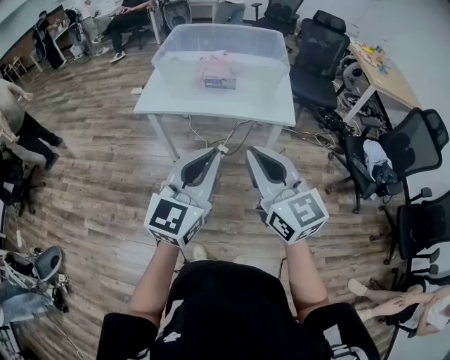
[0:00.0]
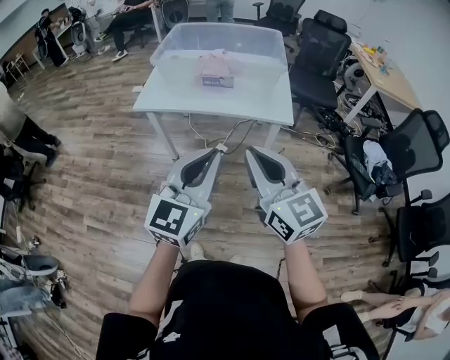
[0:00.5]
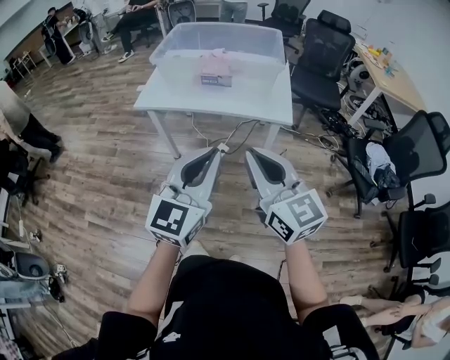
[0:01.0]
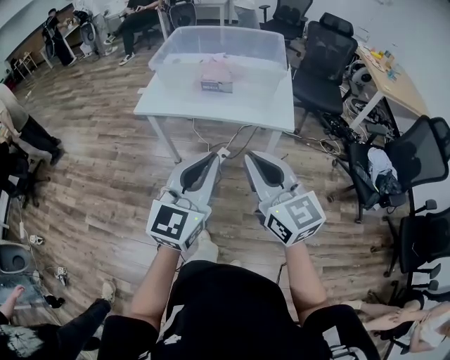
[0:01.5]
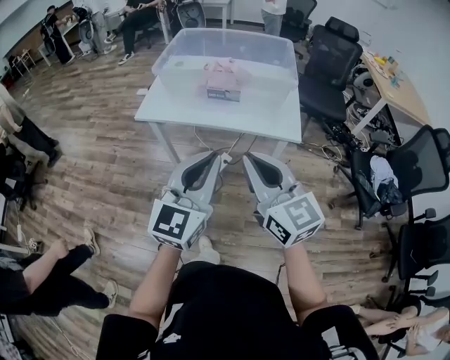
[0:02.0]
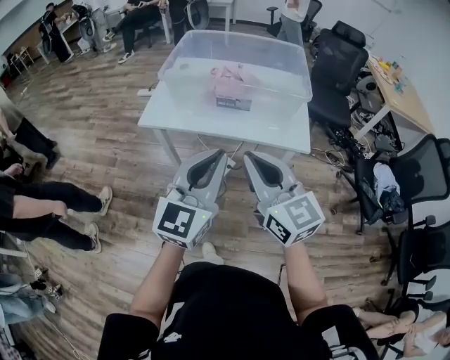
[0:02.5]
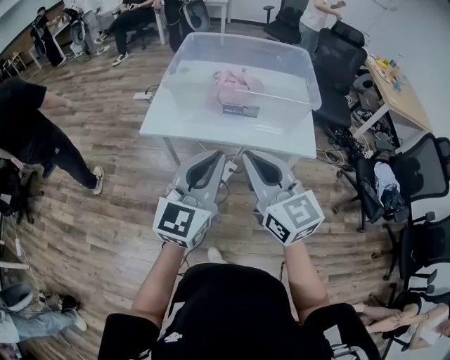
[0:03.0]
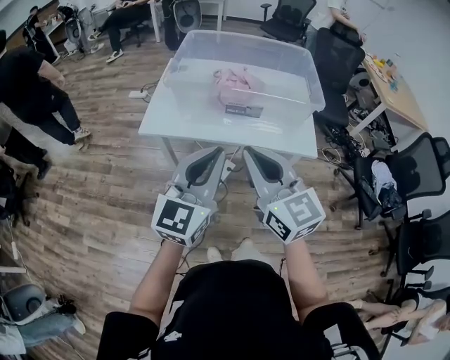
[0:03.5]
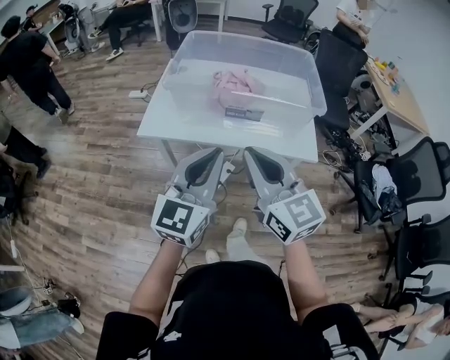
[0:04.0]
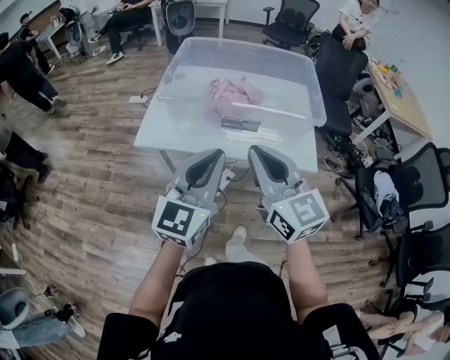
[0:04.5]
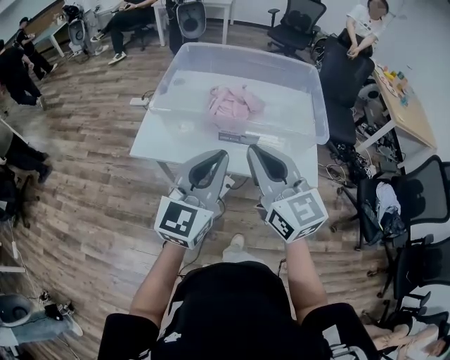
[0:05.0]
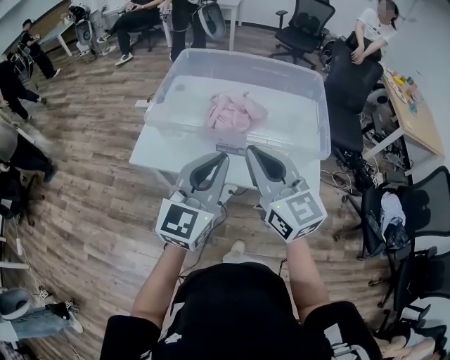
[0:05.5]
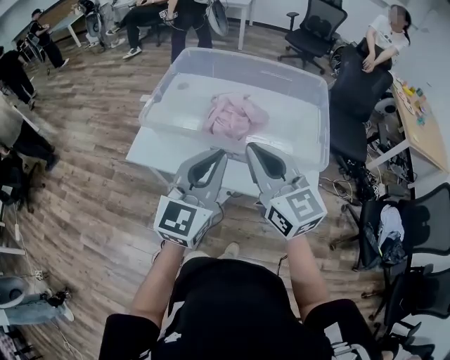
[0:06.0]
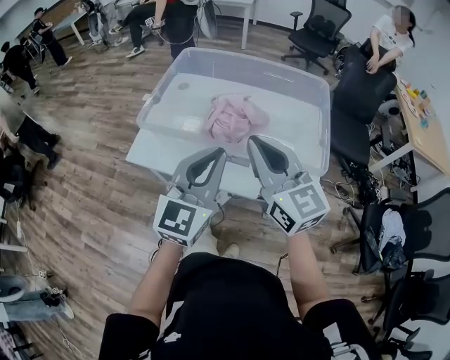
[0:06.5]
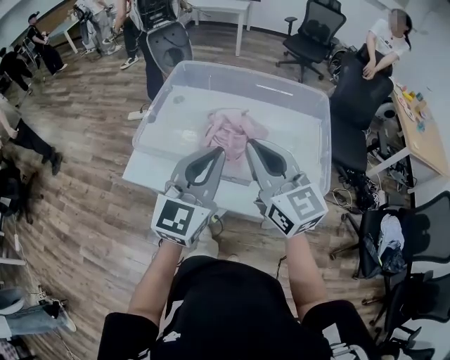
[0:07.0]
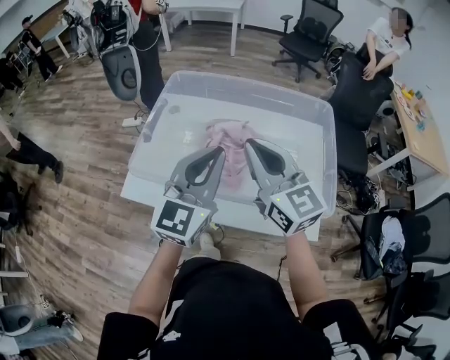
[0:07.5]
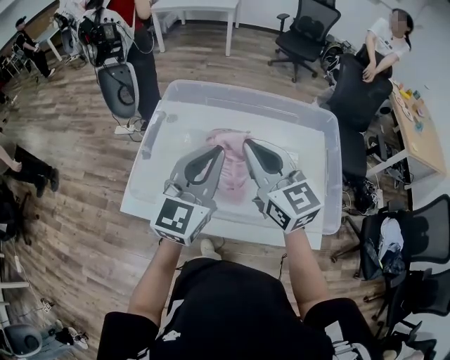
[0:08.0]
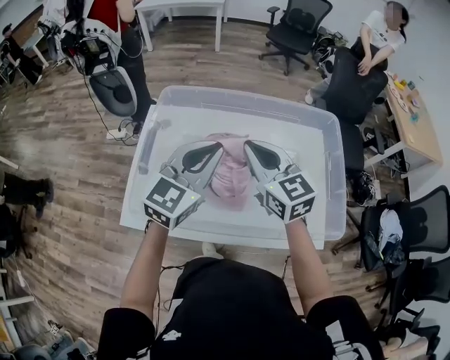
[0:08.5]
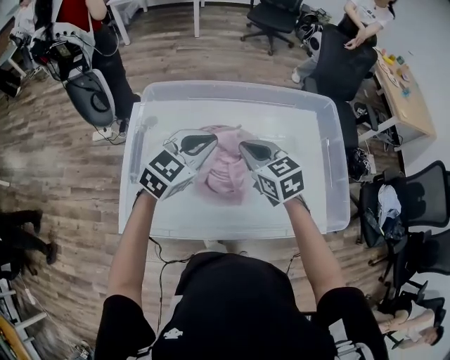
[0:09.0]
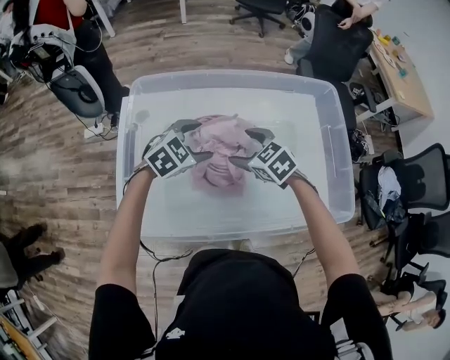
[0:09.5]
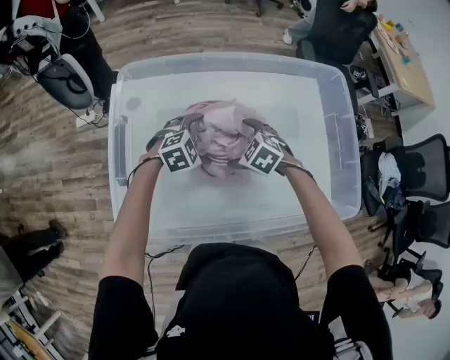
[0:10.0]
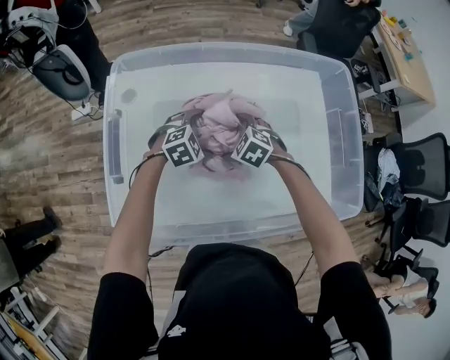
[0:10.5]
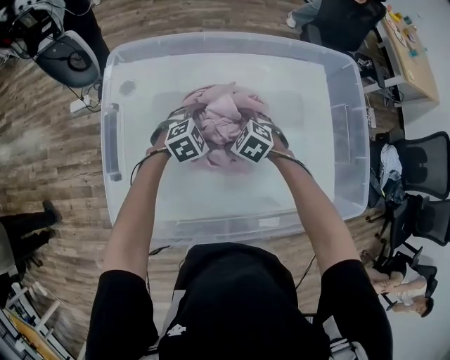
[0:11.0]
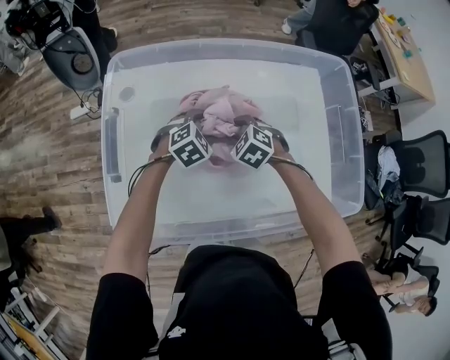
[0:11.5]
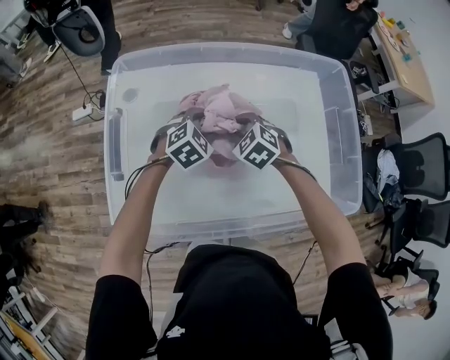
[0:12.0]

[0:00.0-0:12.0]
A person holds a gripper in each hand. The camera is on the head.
0:00.0 to 0:02.0: The grippers both shift forward by some 10 cm.
0:02.0 to 0:04.0: The grippers both shift forward and to the left by roughly 20 cm.
0:04.0 to 0:06.0: Both grippers move forward and to the right, roughly 20 cm.
0:06.0 to 0:08.0: Both grippers move forward, approximately 20 cm.
0:08.0 to 0:10.0: Both grippers travel together downward, some 35 cm. The left gripper points its fingers about 60 degrees further downward, and opens up. Meanwhile the right gripper angles its fingers downward, by some 60 degrees, and opens.
0:10.0 to 0:12.0: The right gripper closes; the left gripper closes its fingers.

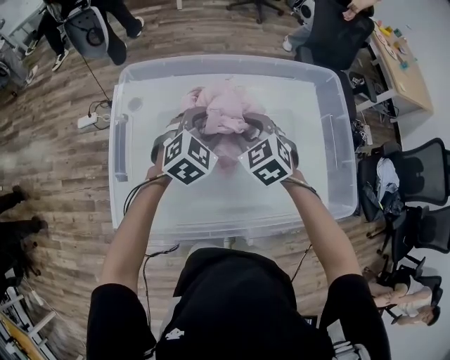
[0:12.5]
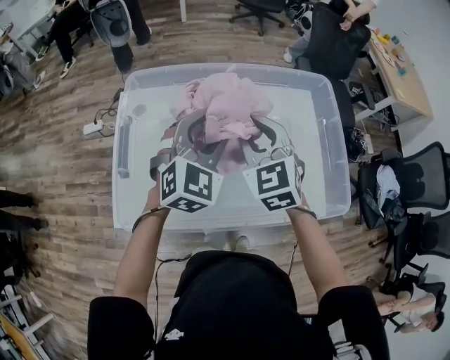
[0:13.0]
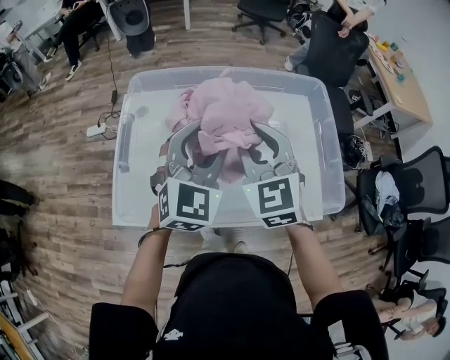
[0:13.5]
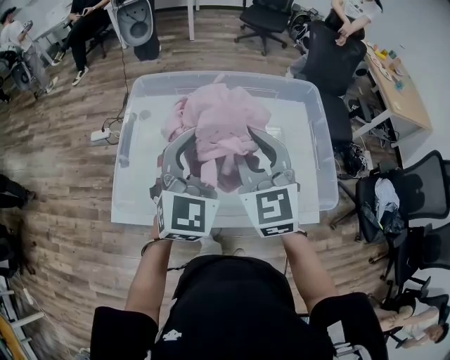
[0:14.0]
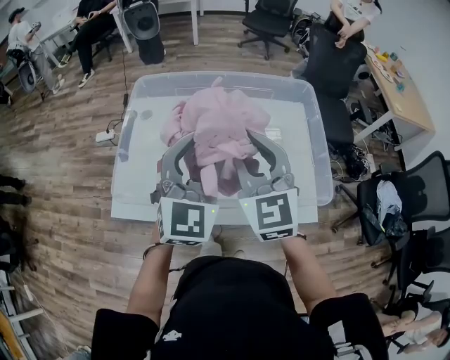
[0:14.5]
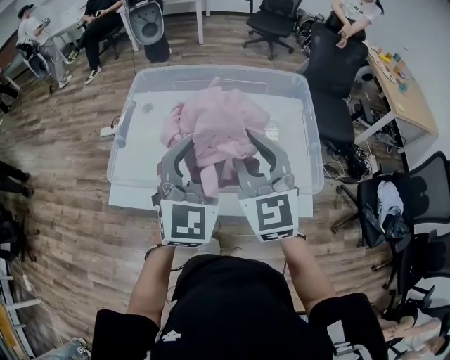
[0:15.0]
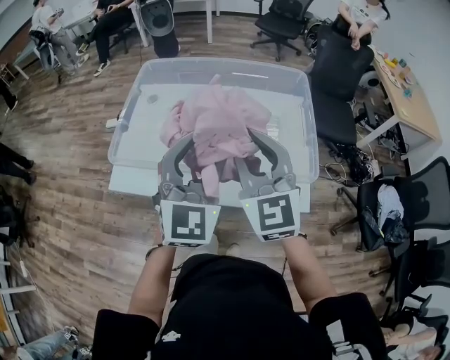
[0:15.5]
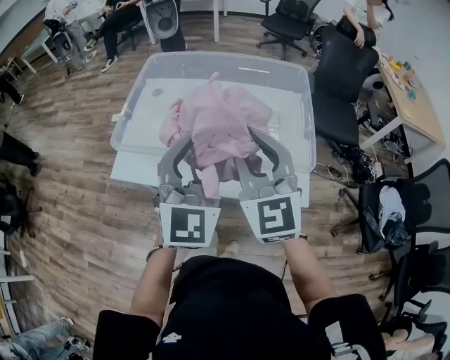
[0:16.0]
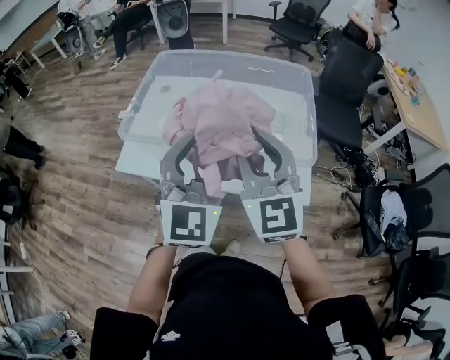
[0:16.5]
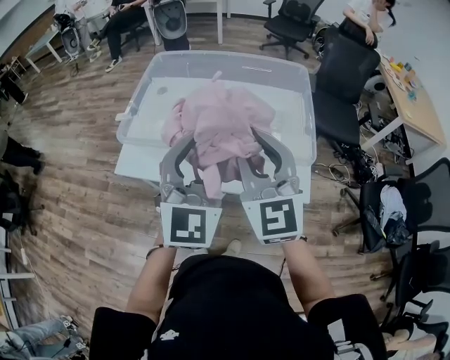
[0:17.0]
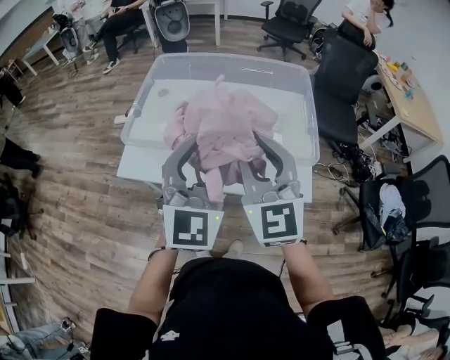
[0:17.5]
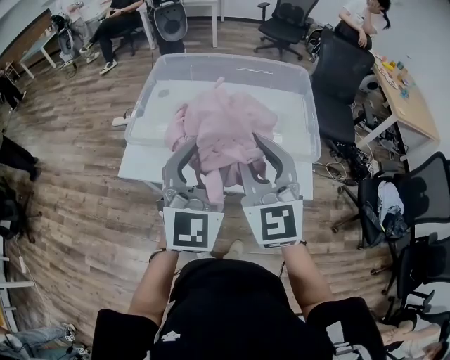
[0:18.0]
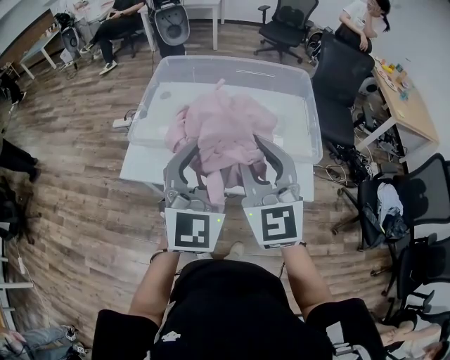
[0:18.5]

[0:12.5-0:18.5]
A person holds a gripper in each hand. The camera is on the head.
0:12.5 to 0:14.5: Both grippers move upward and backward, some 25 cm. The left gripper points its fingers about 30 degrees further upward, while the right gripper tilts its fingers about 30 degrees upward.
0:14.5 to 0:16.5: The grippers both shift backward by some 15 cm.
0:16.5 to 0:18.5: The left gripper ends up about 5 cm from where it was. Meanwhile the right gripper ends up approximately 5 cm from where it was.

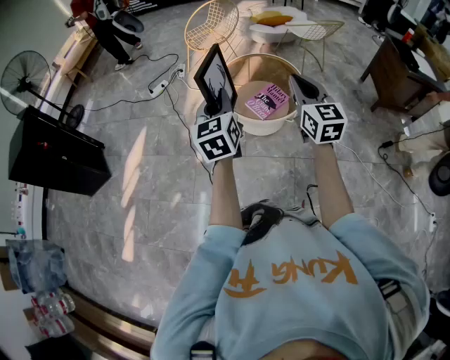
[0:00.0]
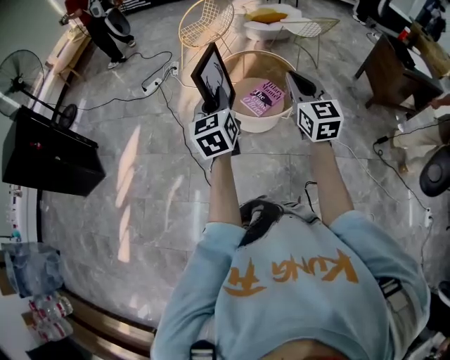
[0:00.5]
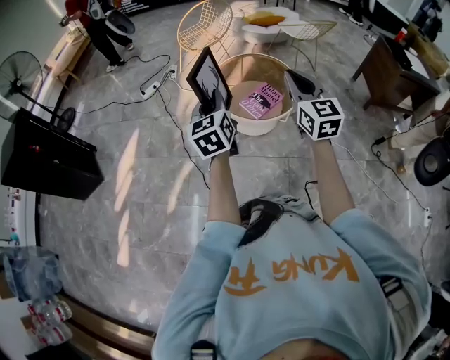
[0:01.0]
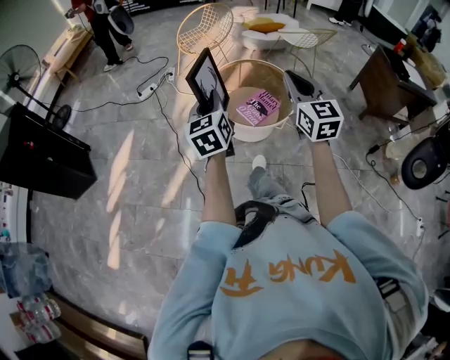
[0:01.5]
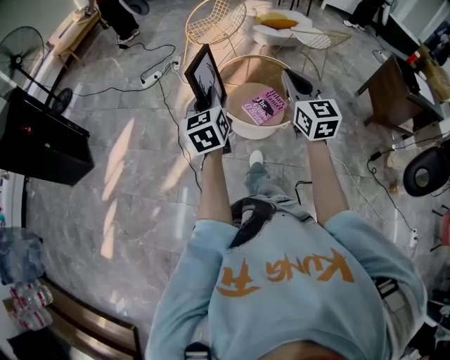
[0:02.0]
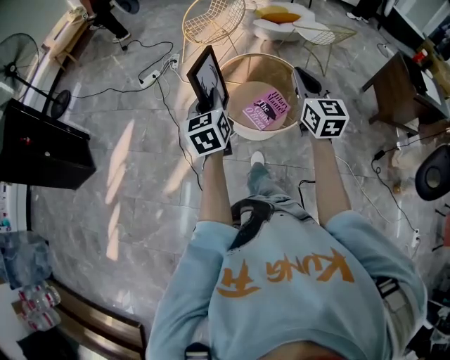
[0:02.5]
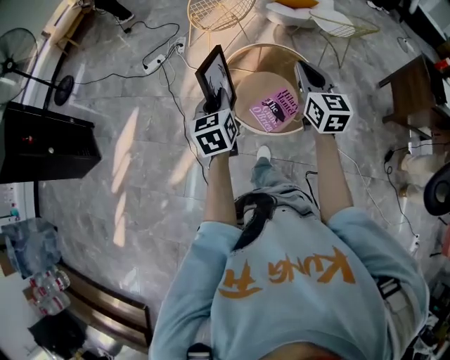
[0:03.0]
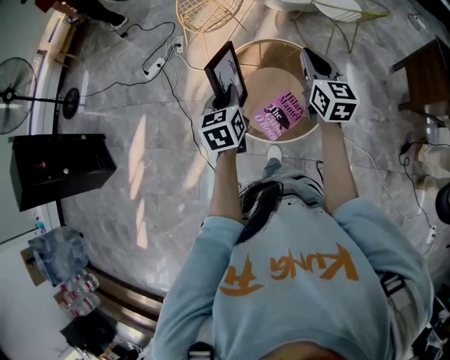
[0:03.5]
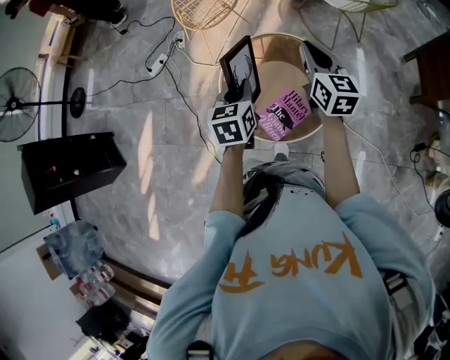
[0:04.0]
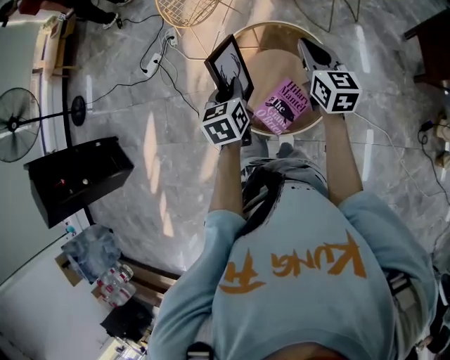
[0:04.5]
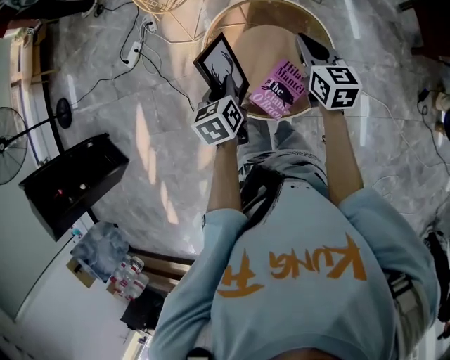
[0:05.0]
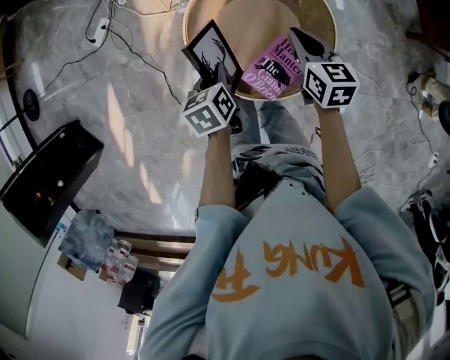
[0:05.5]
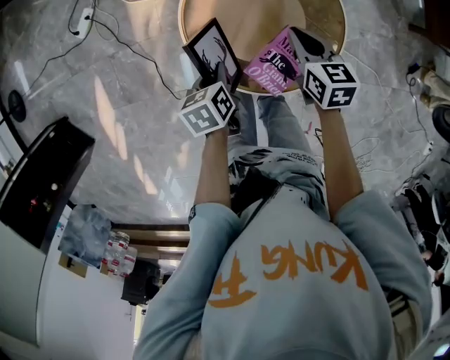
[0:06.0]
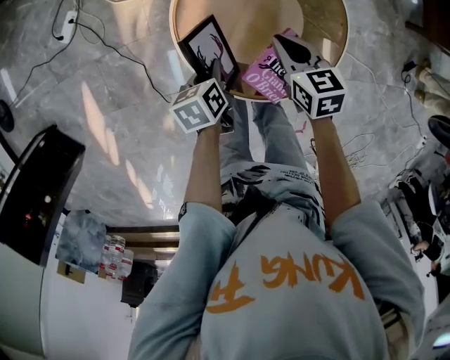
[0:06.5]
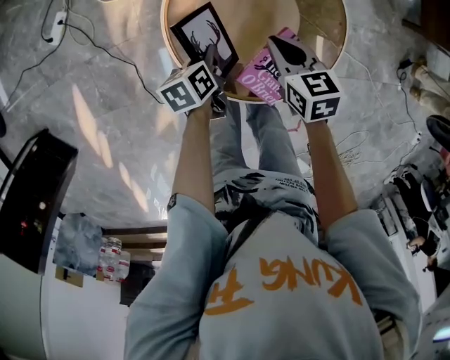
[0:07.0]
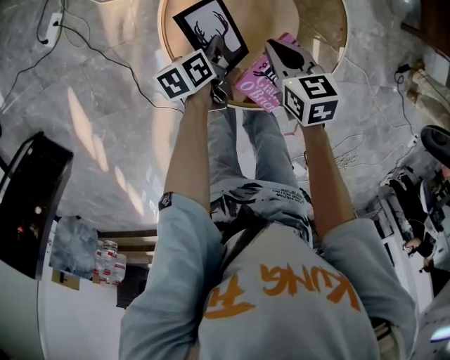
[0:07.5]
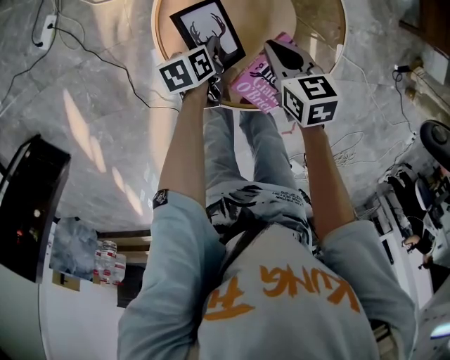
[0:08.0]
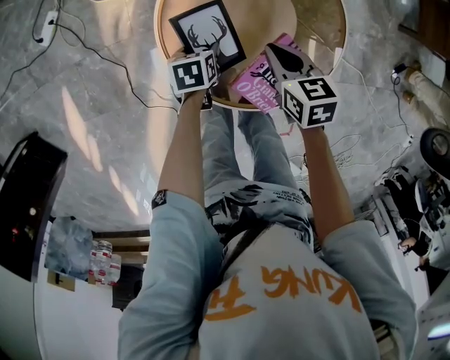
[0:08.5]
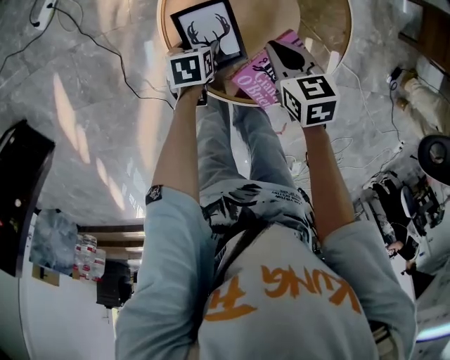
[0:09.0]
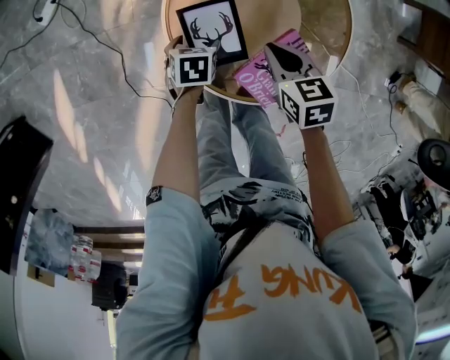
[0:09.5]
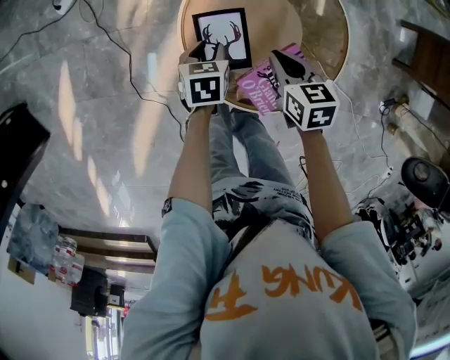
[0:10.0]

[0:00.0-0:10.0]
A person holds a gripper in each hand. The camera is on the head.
0:00.0 to 0:02.0: The left gripper is displaced forward and downward by about 10 cm. Meanwhile the right gripper shifts roughly 10 cm forward.
0:02.0 to 0:04.0: The pair of grippers is taken forward and to the right, some 40 cm. The right gripper swivels approximately 20 degrees. Meanwhile the left gripper turns by about 30 degrees.
0:04.0 to 0:06.0: The grippers both shift downward by roughly 25 cm. The right gripper angles its fingers downward, by approximately 30 degrees, while the left gripper turns by about 30 degrees.
0:06.0 to 0:08.0: The left gripper is displaced downward and forward by about 20 cm. The right gripper shifts about 10 cm downward.
0:08.0 to 0:10.0: The right gripper ends up about 5 cm from where it was, while the left gripper is displaced to the left, upward and backward by some 10 cm, rotates about 30 degrees, and opens and closes again.
